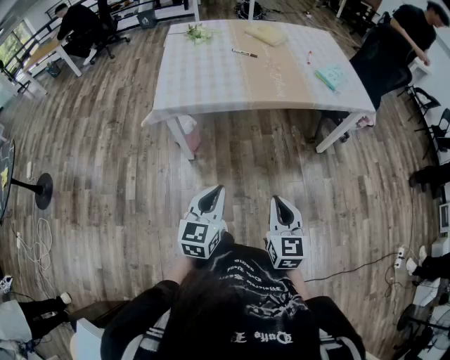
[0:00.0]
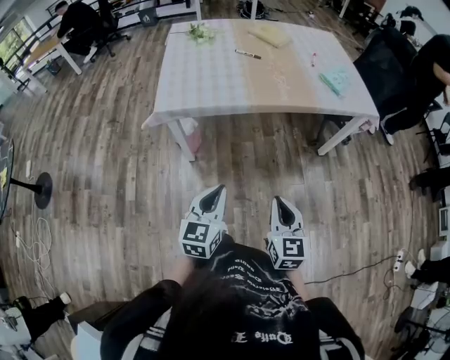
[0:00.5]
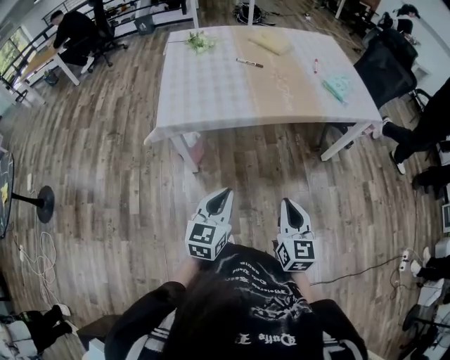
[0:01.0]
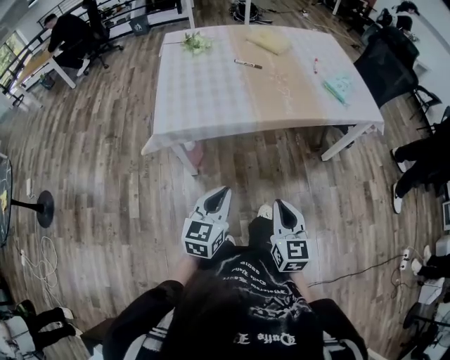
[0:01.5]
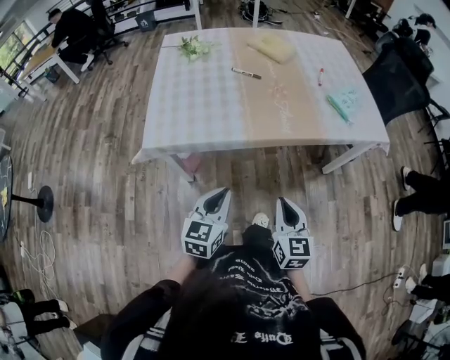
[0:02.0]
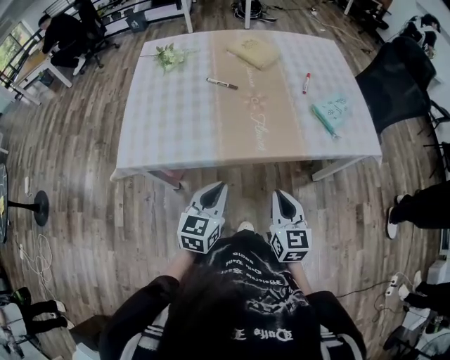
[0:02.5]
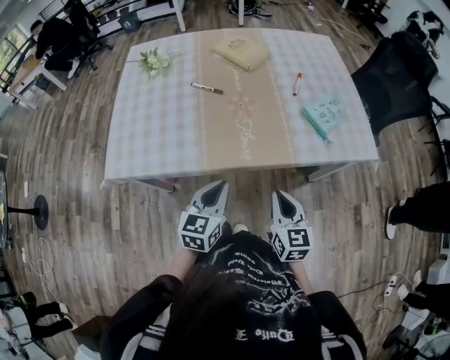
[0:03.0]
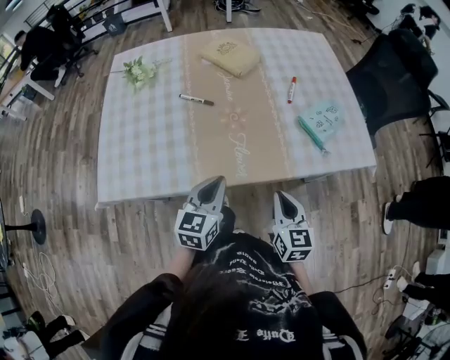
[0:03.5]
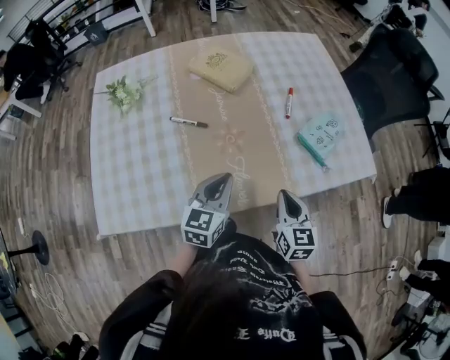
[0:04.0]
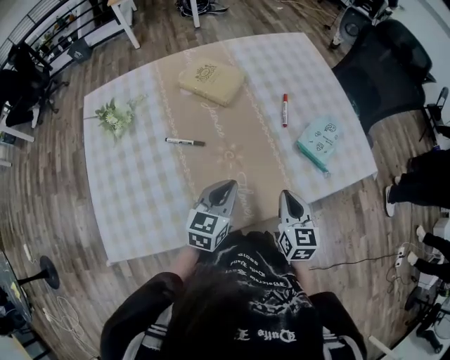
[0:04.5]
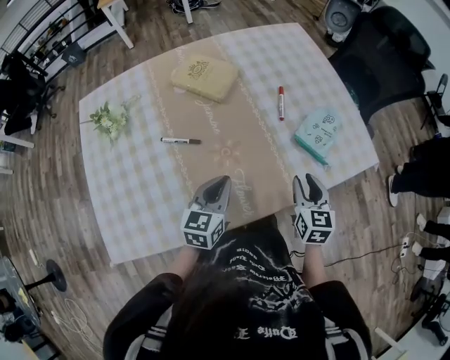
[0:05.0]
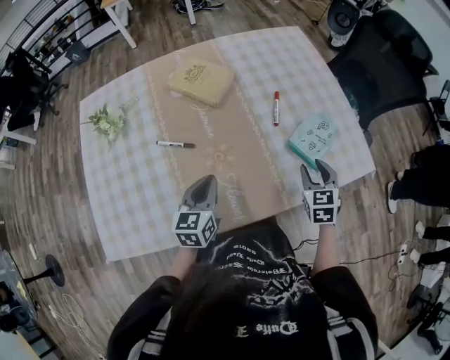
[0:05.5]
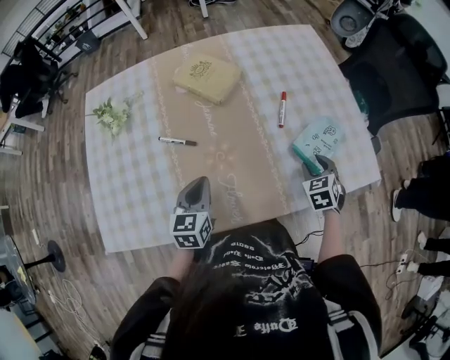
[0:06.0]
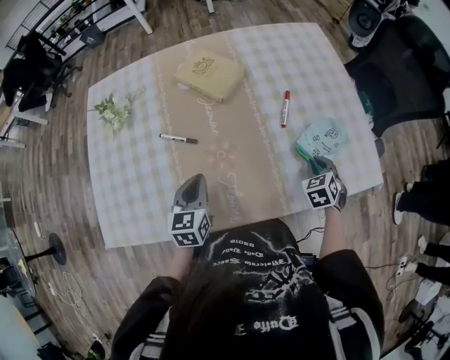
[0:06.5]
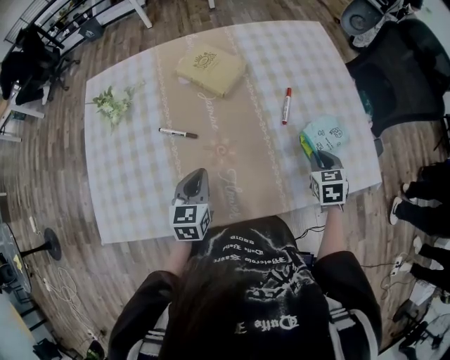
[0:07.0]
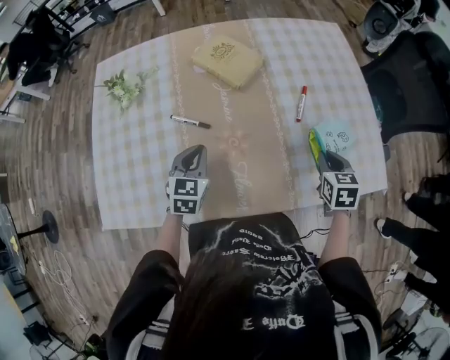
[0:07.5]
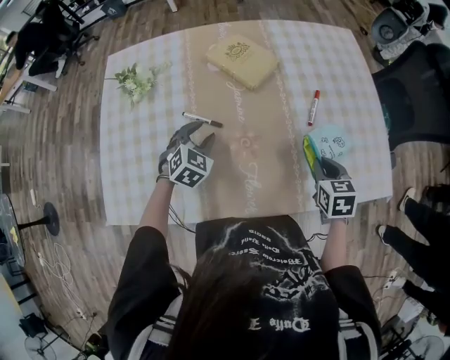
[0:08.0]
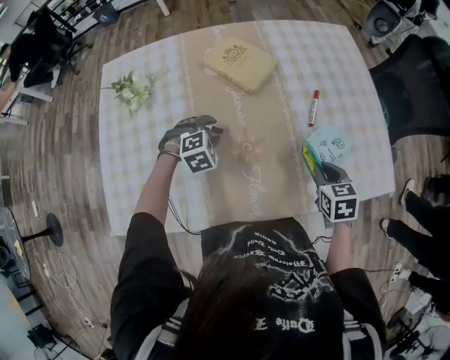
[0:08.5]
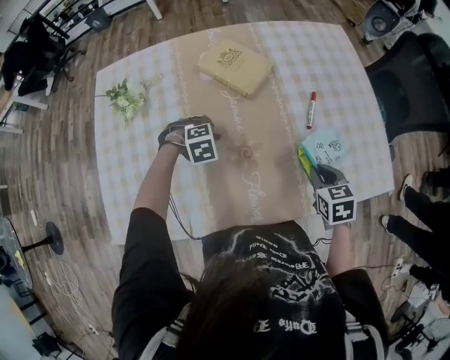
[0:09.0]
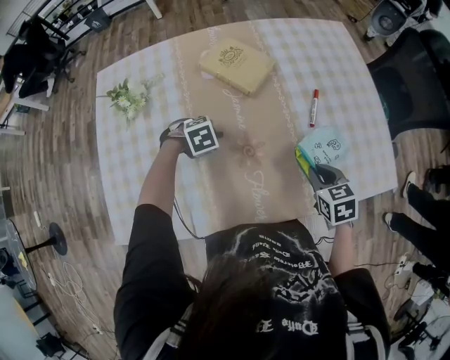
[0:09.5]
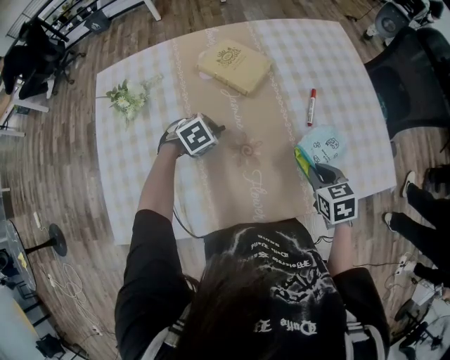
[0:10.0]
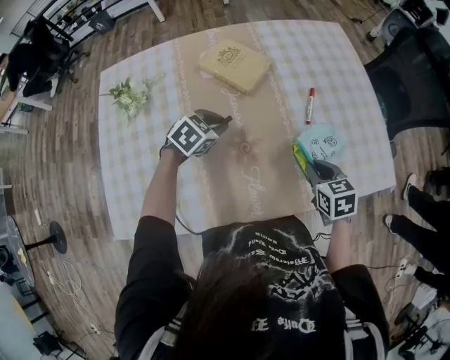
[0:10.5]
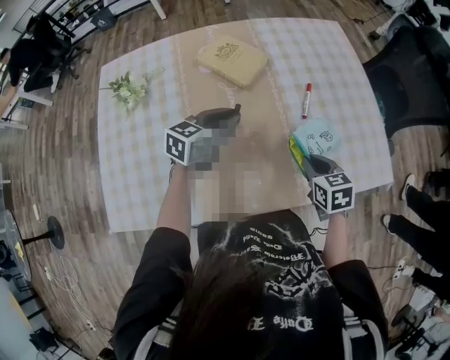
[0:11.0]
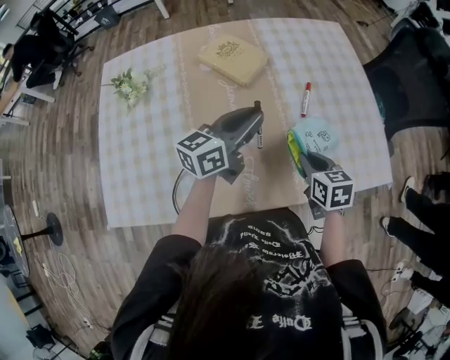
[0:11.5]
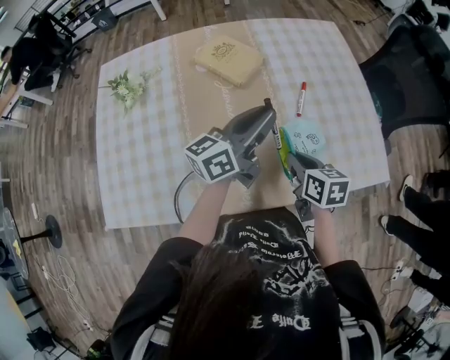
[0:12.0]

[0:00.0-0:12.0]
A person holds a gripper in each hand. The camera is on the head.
0:00.0 to 0:02.0: Both grippers travel together forward, about 25 cm.
0:02.0 to 0:04.0: The two grippers travel together, forward, some 40 cm.
0:04.0 to 0:06.0: The right gripper moves forward and to the right, roughly 25 cm, turns by roughly 40 degrees, and opens up. The left gripper is displaced forward by some 10 cm.
0:06.0 to 0:08.0: The right gripper moves to the left and upward, about 10 cm, and closes its fingers. Meanwhile the left gripper heads forward and to the left, covering roughly 10 cm, rotates around the line of its fingers by about 40 degrees, clockwise from behind, and opens up.
0:08.0 to 0:10.0: The left gripper moves downward, roughly 5 cm, turns by roughly 40 degrees, and closes its fingers.
0:10.0 to 0:12.0: The right gripper changes its angle by roughly 30 degrees, while the left gripper moves upward and to the right, roughly 30 cm, and points its fingers some 80 degrees further upward.

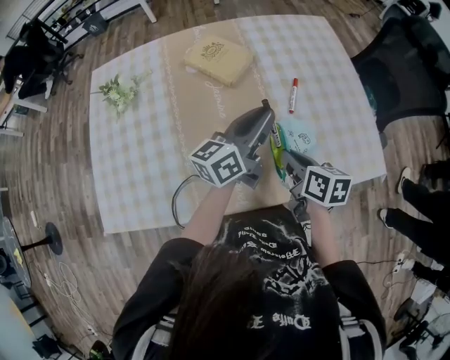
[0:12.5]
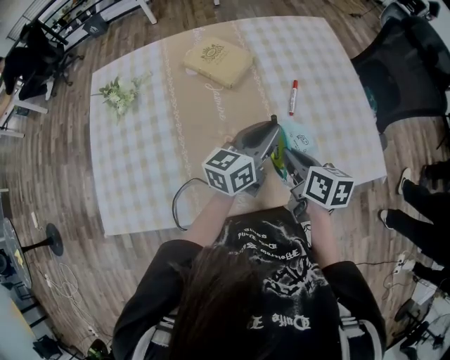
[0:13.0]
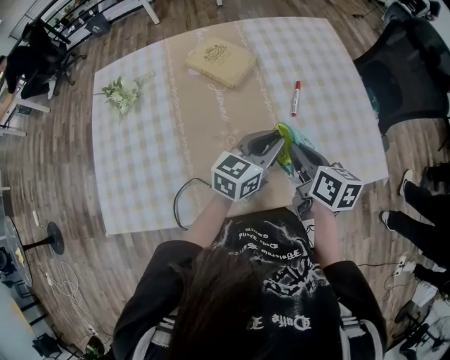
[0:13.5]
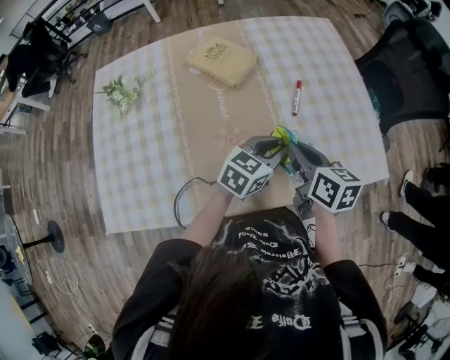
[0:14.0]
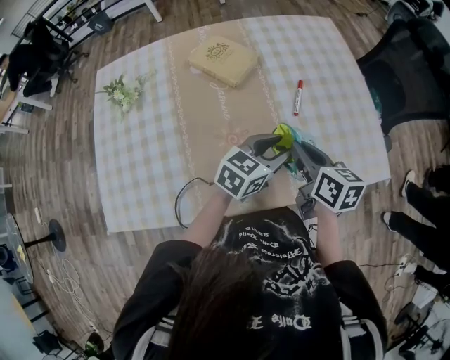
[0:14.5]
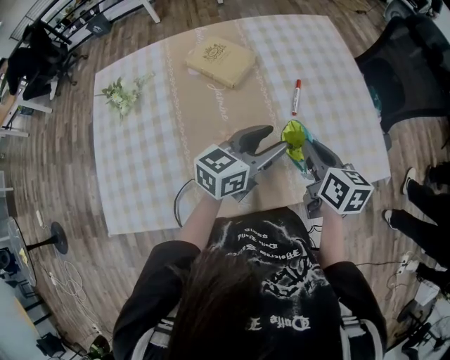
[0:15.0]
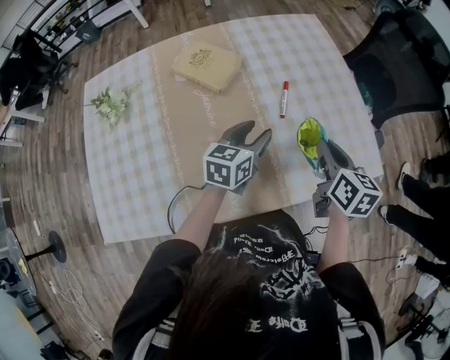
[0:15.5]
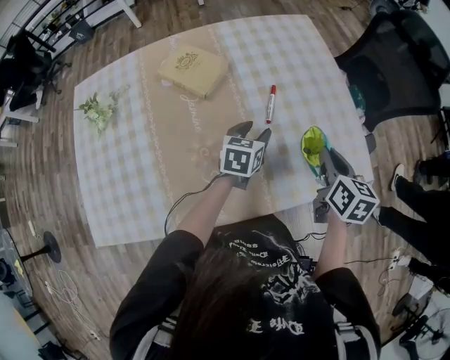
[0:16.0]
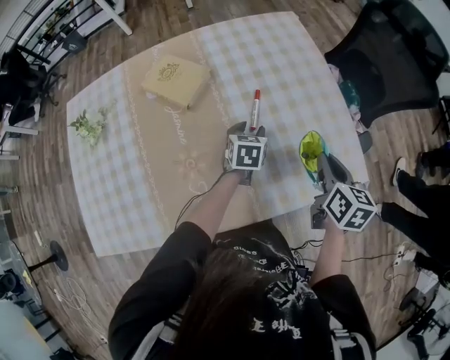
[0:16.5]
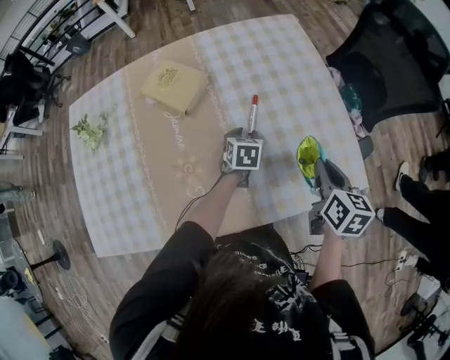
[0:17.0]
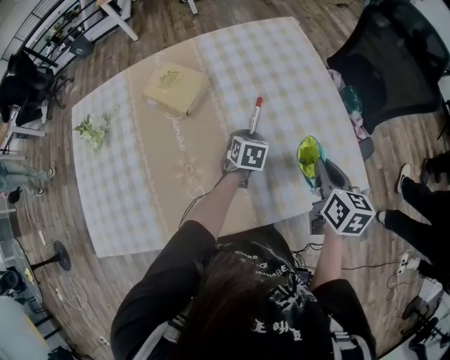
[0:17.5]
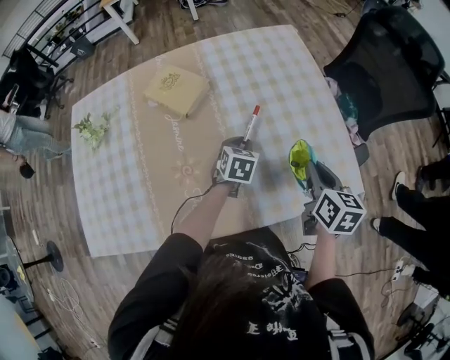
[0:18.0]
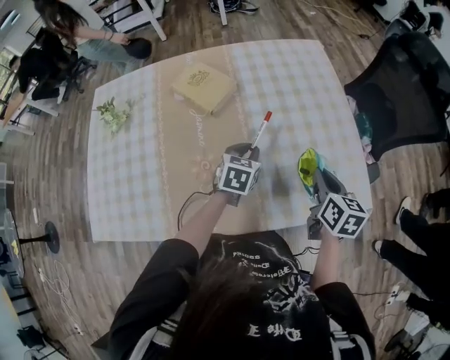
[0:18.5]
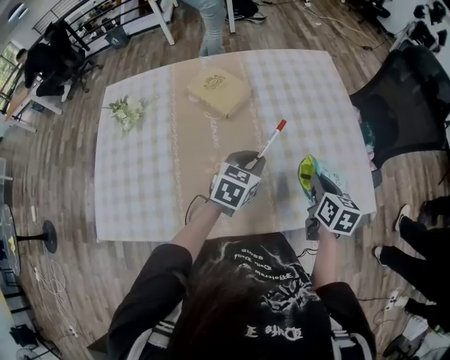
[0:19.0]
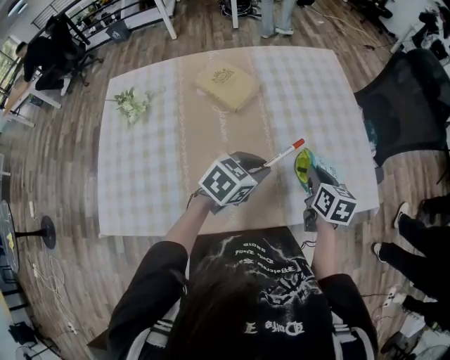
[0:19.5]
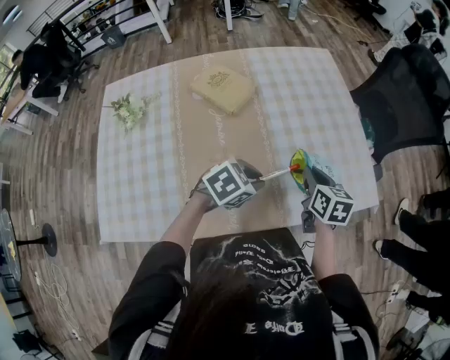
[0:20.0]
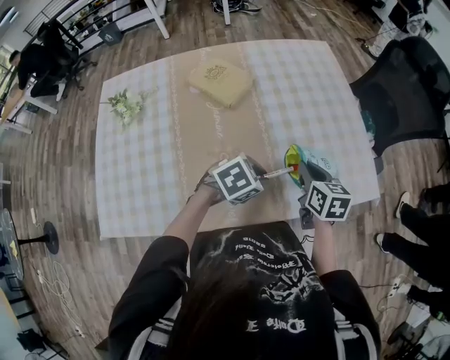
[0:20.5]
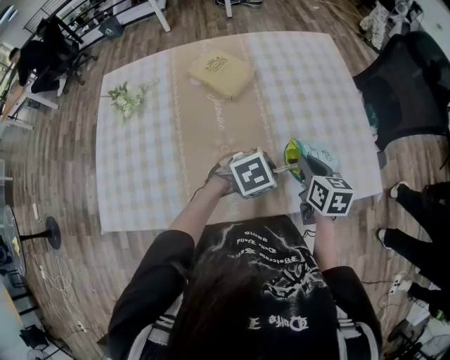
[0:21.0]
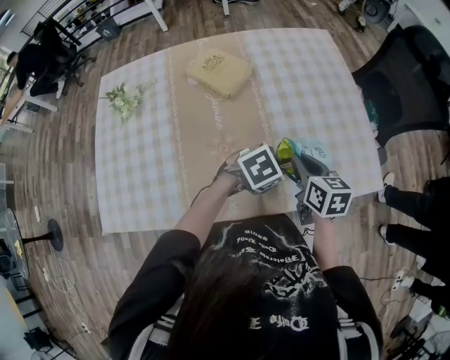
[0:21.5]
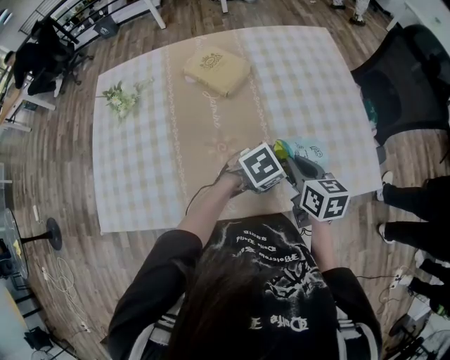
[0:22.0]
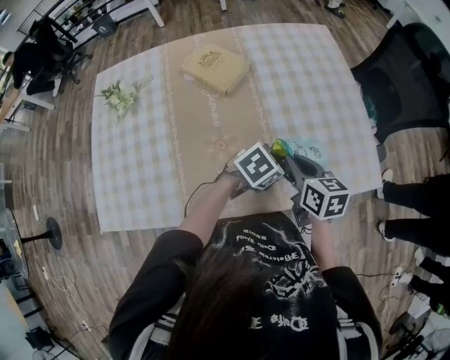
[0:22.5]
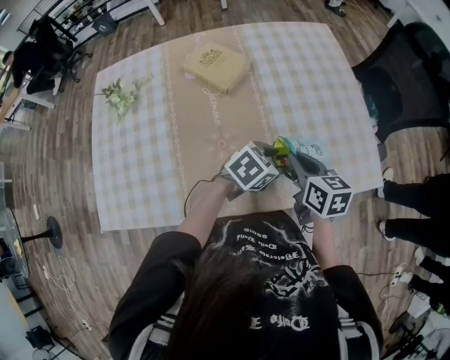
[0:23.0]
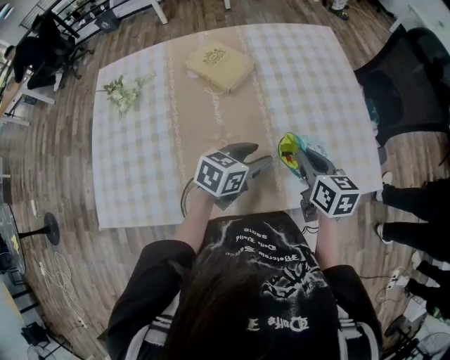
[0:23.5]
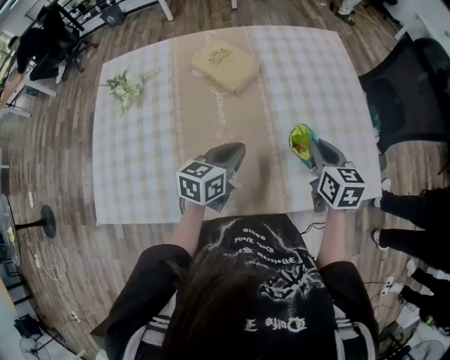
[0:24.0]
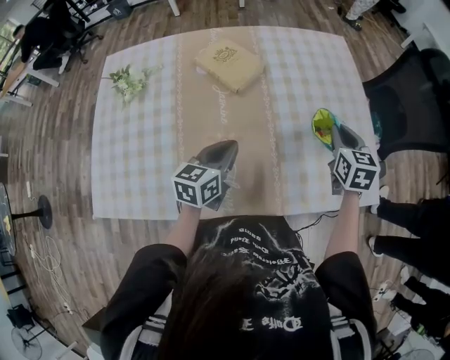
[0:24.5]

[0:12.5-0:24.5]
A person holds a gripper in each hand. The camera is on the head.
0:12.5 to 0:14.5: The left gripper travels downward and to the right by approximately 10 cm, changes its angle by some 40 degrees, and opens its fingers. The right gripper ends up about 5 cm from where it was.
0:14.5 to 0:16.5: The right gripper shifts some 20 cm to the right, and turns by about 20 degrees. The left gripper moves forward and downward, some 20 cm, and changes its angle by some 30 degrees.
0:16.5 to 0:18.5: The left gripper shifts roughly 5 cm backward, and closes its fingers.
0:18.5 to 0:20.5: The left gripper shifts about 15 cm backward, and changes its angle by some 50 degrees. The right gripper is displaced to the left and backward by about 10 cm.
0:20.5 to 0:22.5: The left gripper travels to the right by some 5 cm.
0:22.5 to 0:24.5: The left gripper heads to the left, covering some 15 cm, rotates roughly 60 degrees, and opens, then closes once more; the right gripper heads forward and to the right, covering some 15 cm, and swivels roughly 30 degrees.

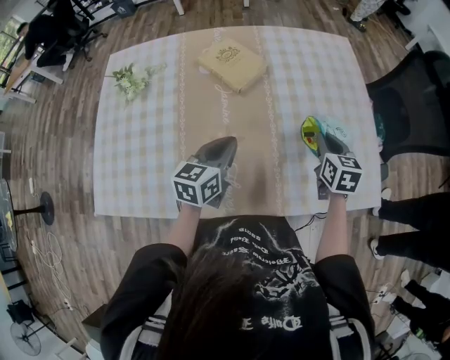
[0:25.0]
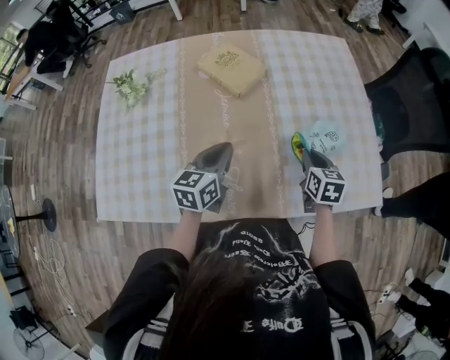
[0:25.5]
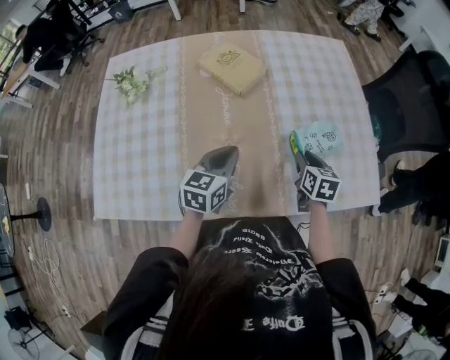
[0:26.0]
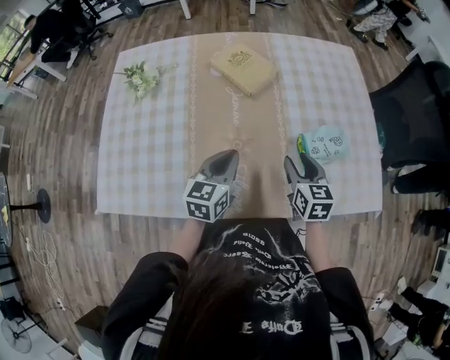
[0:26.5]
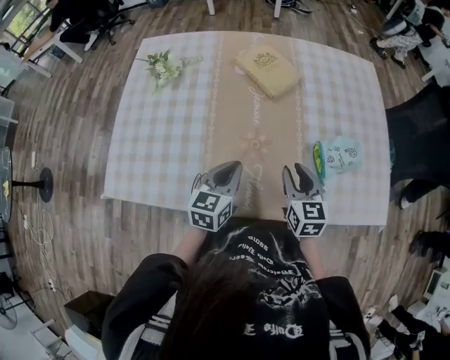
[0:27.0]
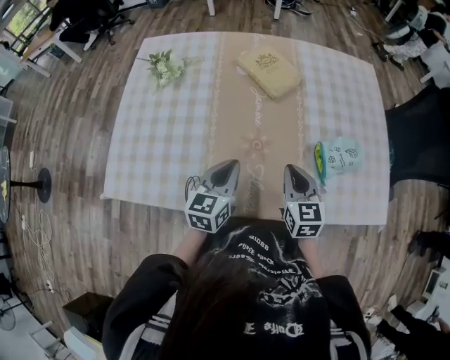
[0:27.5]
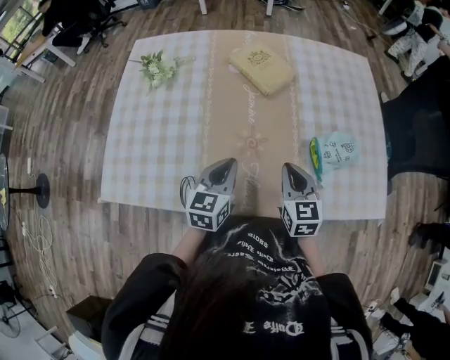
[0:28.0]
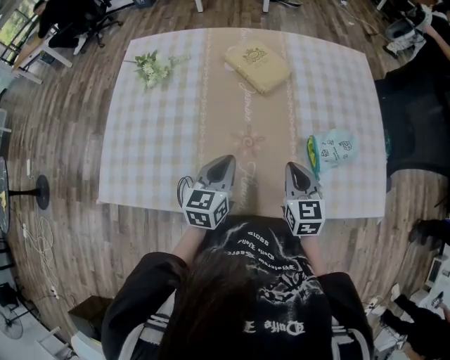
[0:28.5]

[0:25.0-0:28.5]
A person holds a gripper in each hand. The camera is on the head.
0:25.0 to 0:27.0: The right gripper moves to the left and backward, some 20 cm, and opens, while the left gripper is displaced backward and to the left by approximately 10 cm.
0:27.0 to 0:28.5: The right gripper closes up.
